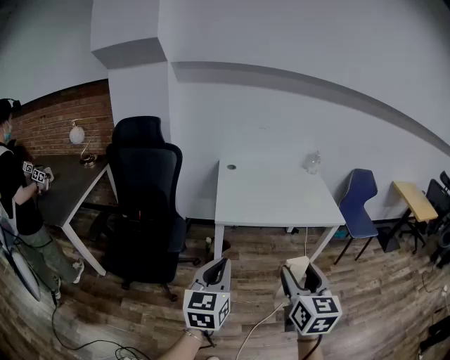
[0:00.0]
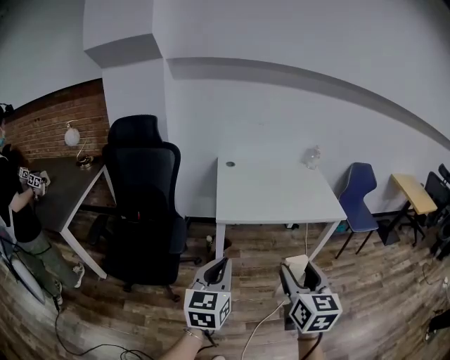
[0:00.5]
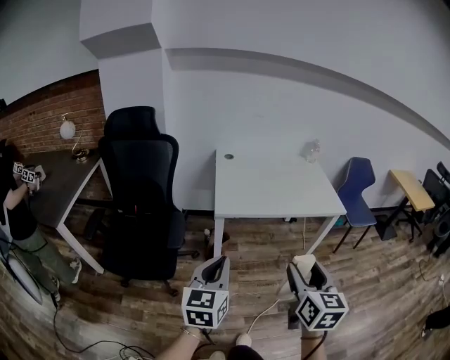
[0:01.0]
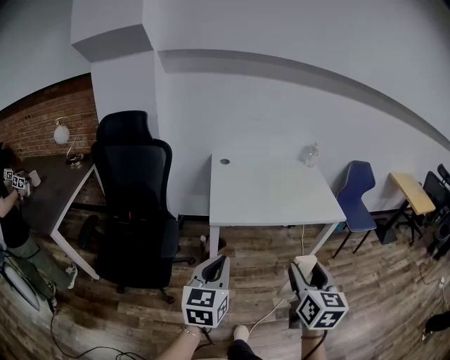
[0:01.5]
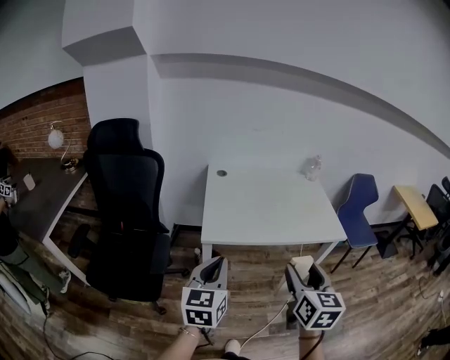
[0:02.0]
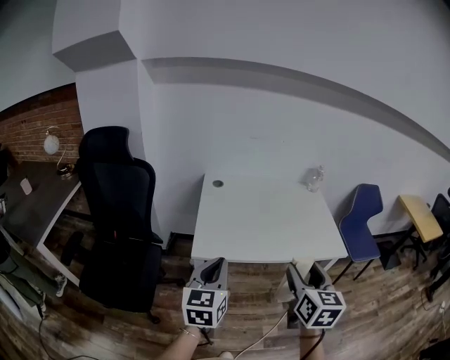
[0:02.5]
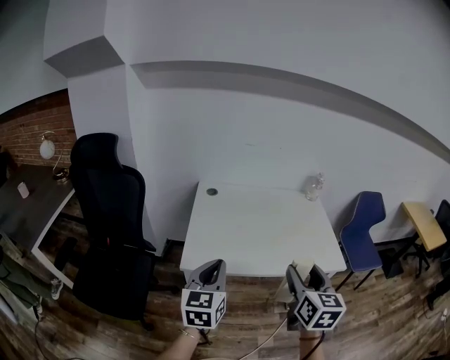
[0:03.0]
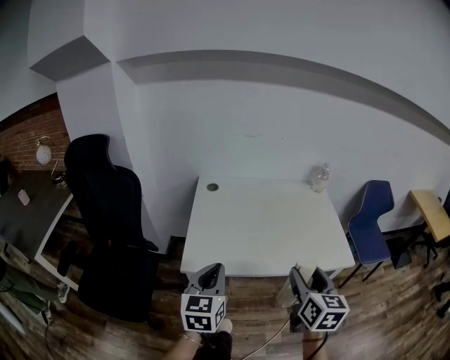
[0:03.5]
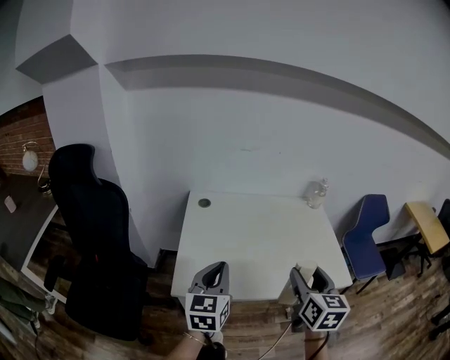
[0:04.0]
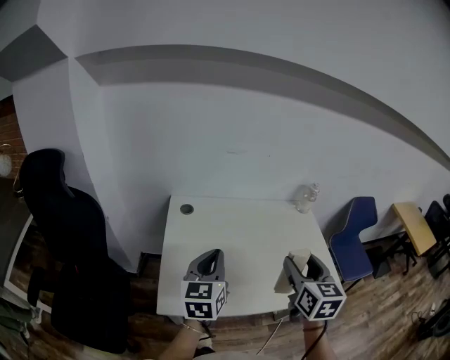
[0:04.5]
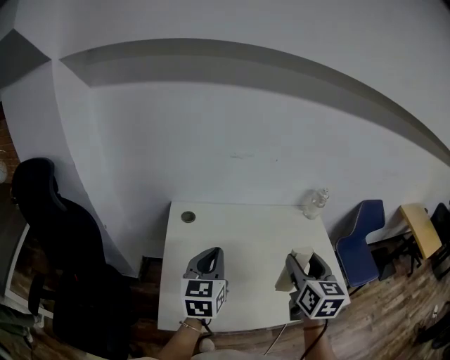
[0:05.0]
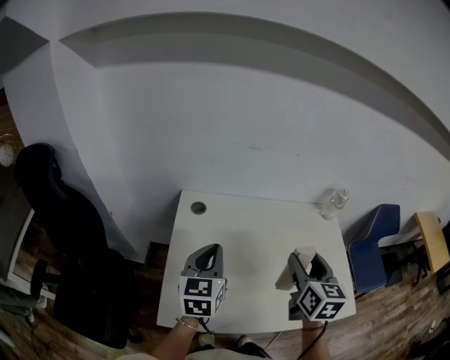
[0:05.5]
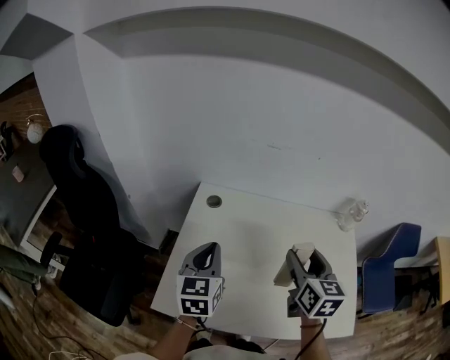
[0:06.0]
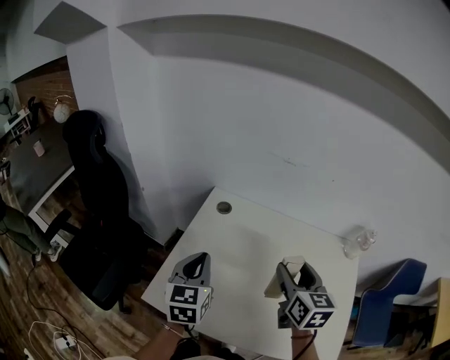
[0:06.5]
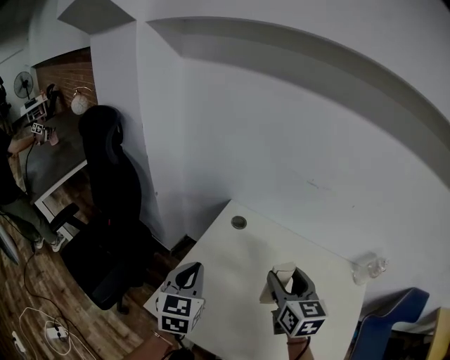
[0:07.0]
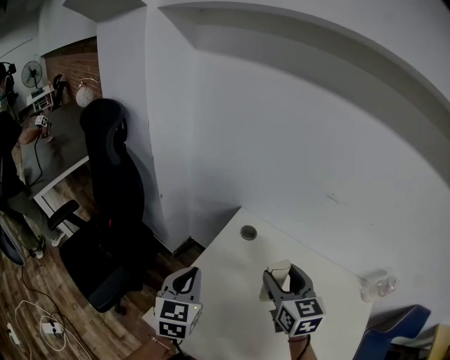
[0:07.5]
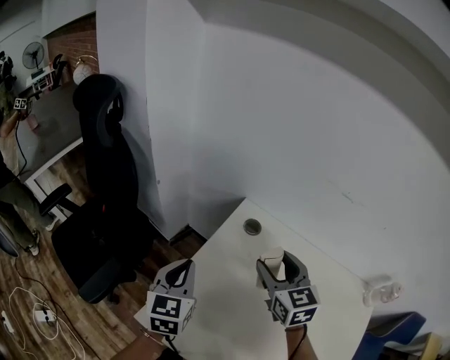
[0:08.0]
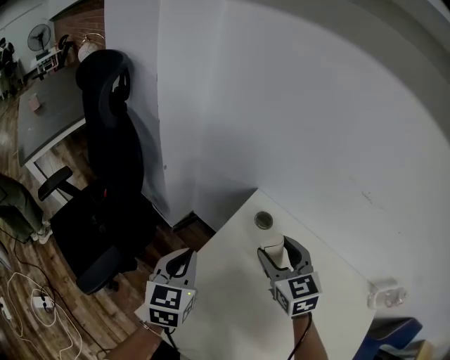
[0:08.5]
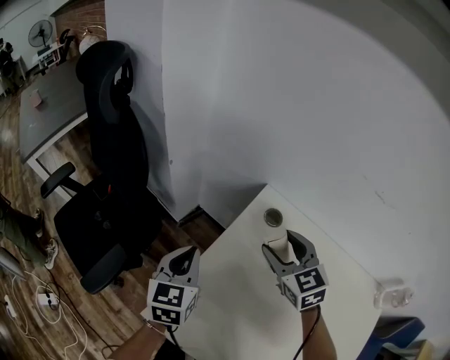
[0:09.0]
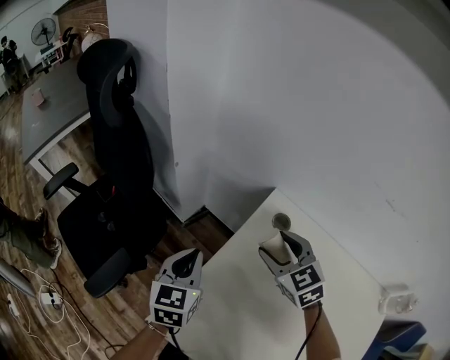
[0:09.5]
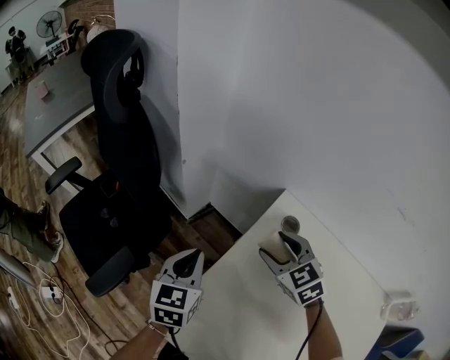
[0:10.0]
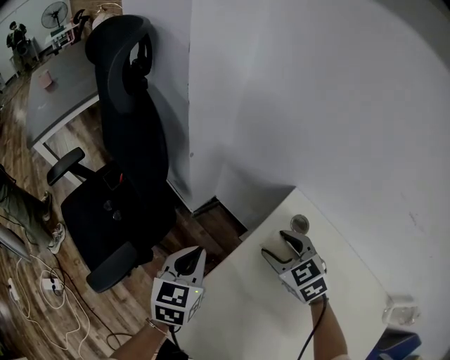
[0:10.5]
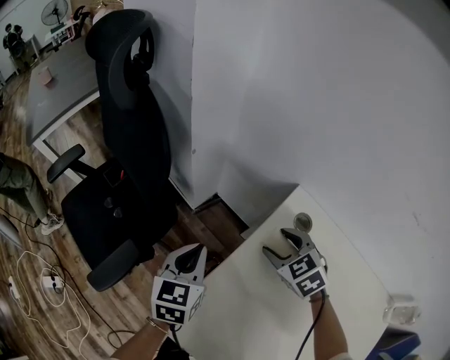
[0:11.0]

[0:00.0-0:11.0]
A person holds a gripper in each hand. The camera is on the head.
0:00.0 to 0:02.0: Both grippers move forward, some 15 cm.
0:02.0 to 0:03.5: The left gripper heads forward, covering some 15 cm. Meanwhile the right gripper is displaced forward and to the right by about 20 cm.
0:03.5 to 0:05.5: Both grippers travel together forward, some 30 cm.
0:05.5 to 0:07.5: The left gripper changes place by some 15 cm, and rotates some 30 degrees, while the right gripper changes place by approximately 20 cm, and swivels some 40 degrees.
0:07.5 to 0:09.0: The right gripper is displaced forward, downward and to the left by roughly 15 cm, and turns by about 20 degrees. Meanwhile the left gripper shifts some 5 cm downward.
0:09.0 to 0:11.0: The right gripper shifts about 10 cm downward and to the left, and changes its angle by approximately 30 degrees; the left gripper ends up roughly 5 cm from where it was.

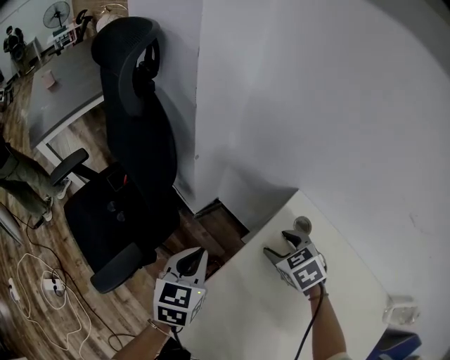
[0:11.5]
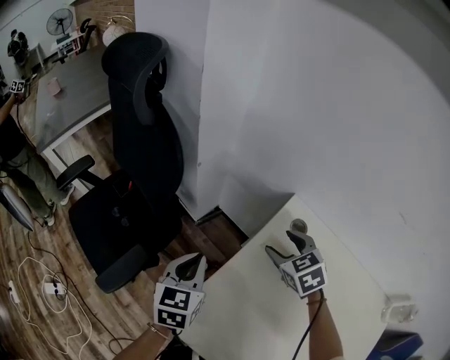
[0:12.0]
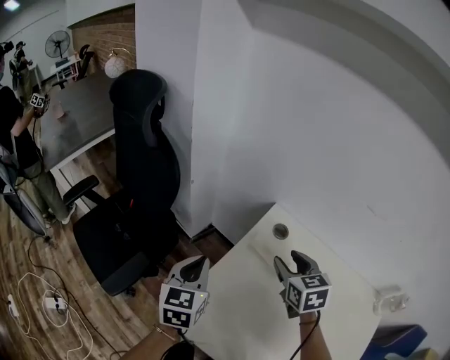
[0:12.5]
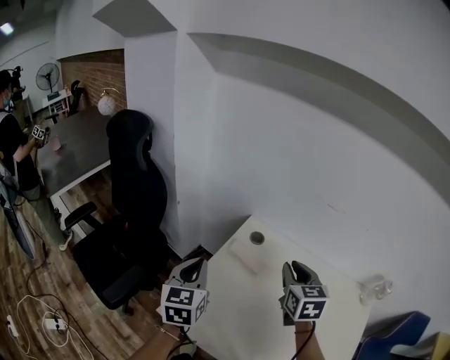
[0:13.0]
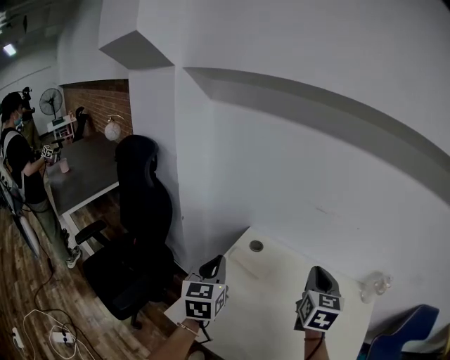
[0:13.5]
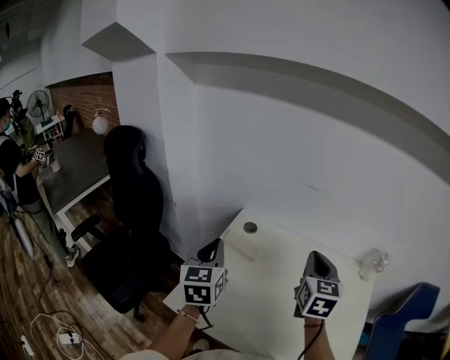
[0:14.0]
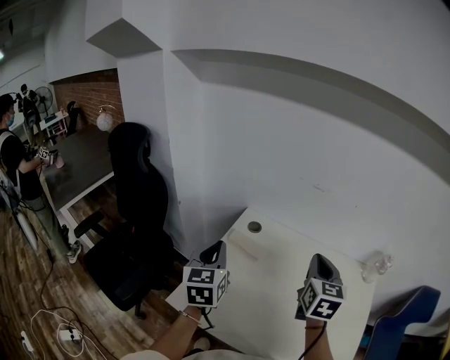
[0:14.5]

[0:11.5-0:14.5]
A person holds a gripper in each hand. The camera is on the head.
0:11.5 to 0:13.0: The right gripper heads upward, backward and to the right, covering approximately 25 cm, tilts its fingers about 30 degrees upward, and closes its fingers. The left gripper goes some 15 cm upward and backward.
0:13.0 to 0:14.5: The left gripper shifts roughly 5 cm to the right. Meanwhile the right gripper shifts roughly 15 cm to the right, backward and upward, and turns by approximately 20 degrees.

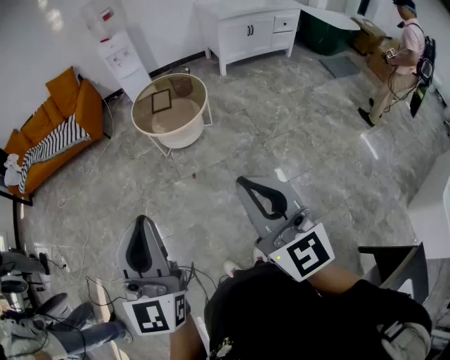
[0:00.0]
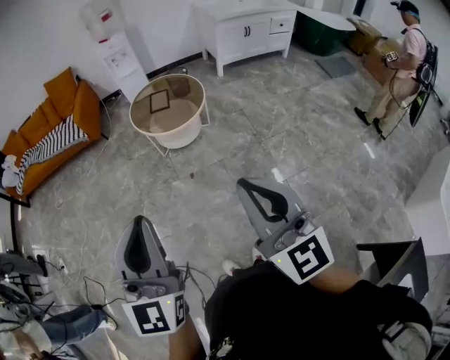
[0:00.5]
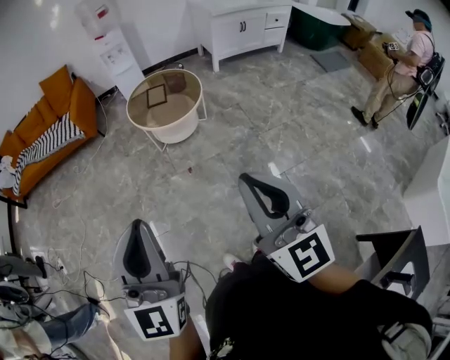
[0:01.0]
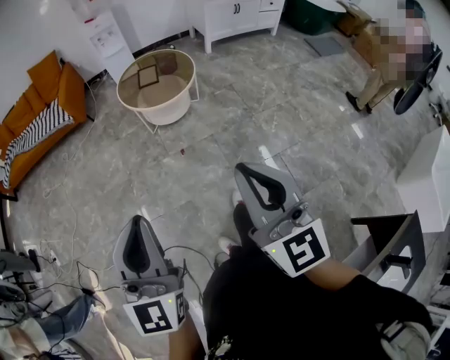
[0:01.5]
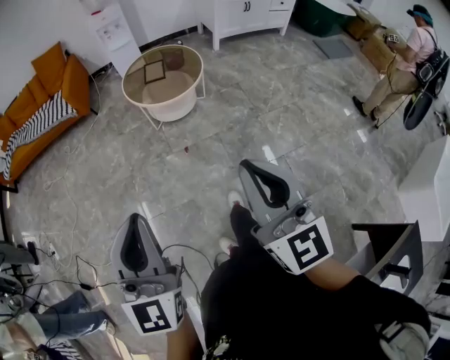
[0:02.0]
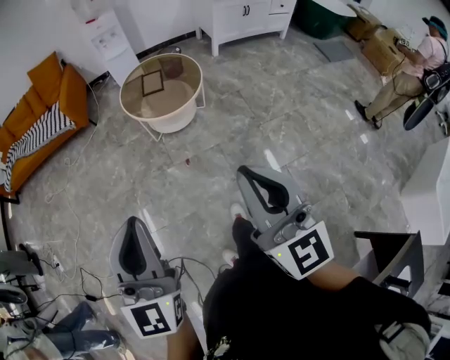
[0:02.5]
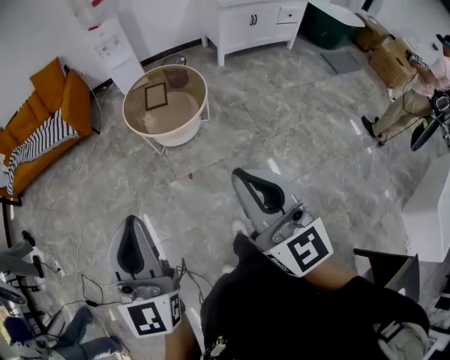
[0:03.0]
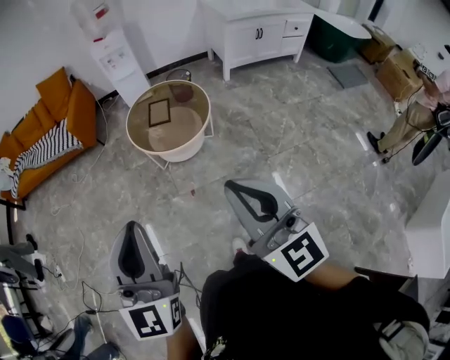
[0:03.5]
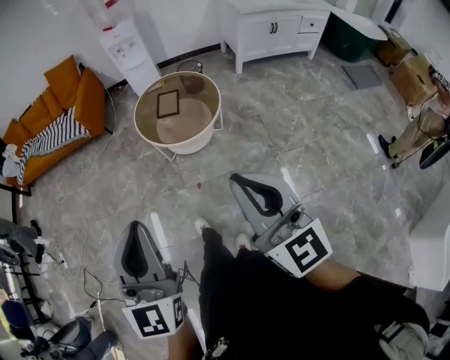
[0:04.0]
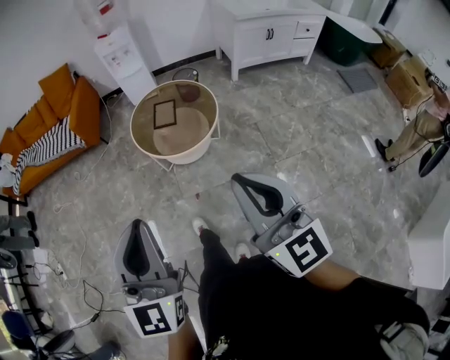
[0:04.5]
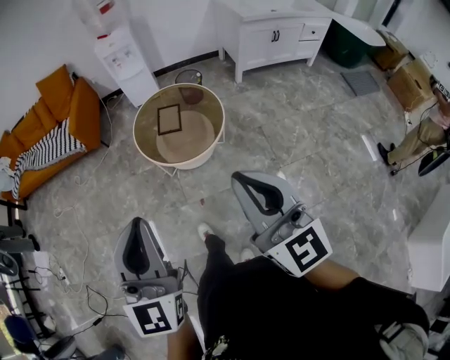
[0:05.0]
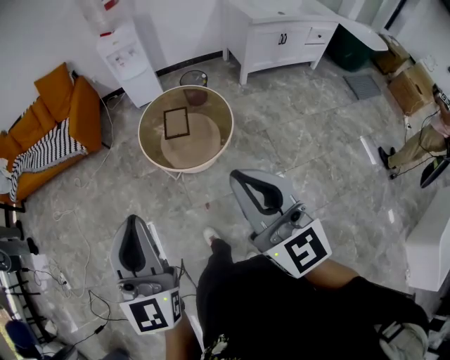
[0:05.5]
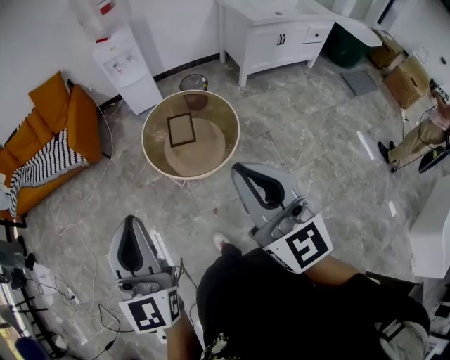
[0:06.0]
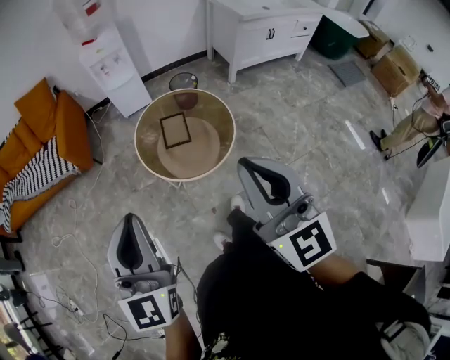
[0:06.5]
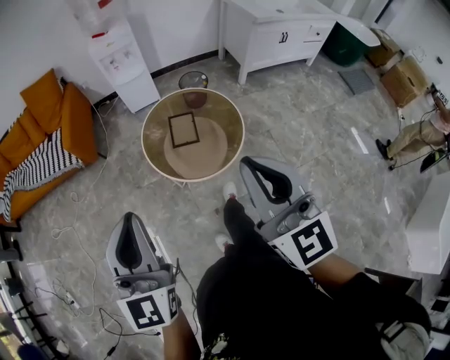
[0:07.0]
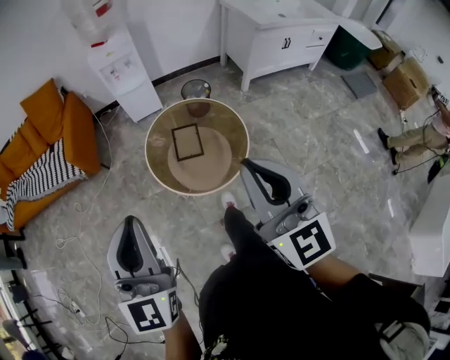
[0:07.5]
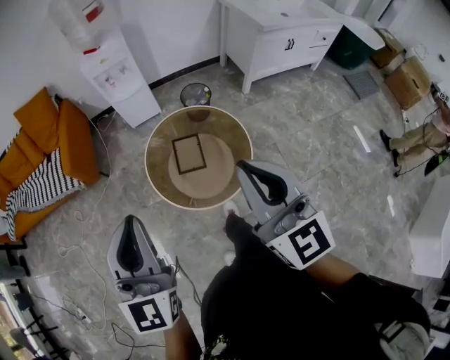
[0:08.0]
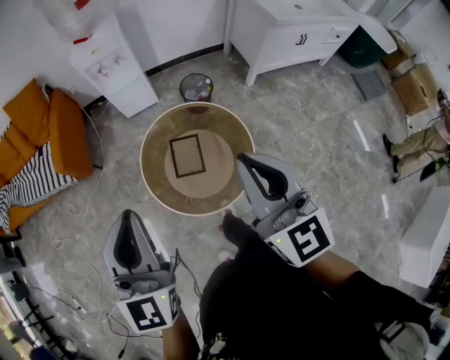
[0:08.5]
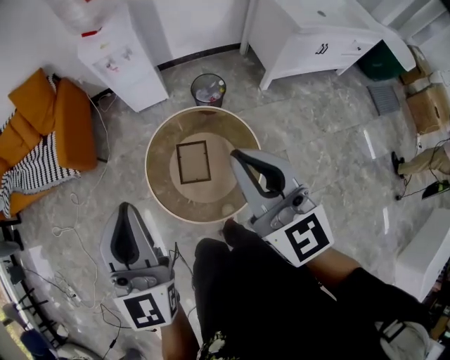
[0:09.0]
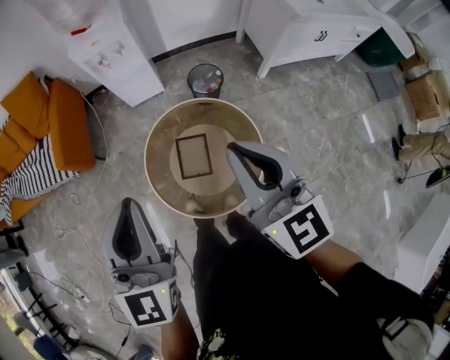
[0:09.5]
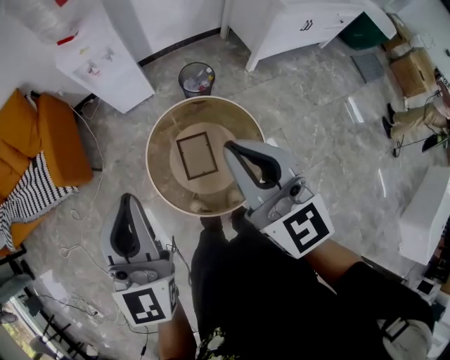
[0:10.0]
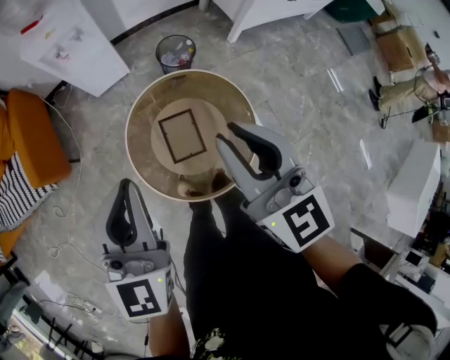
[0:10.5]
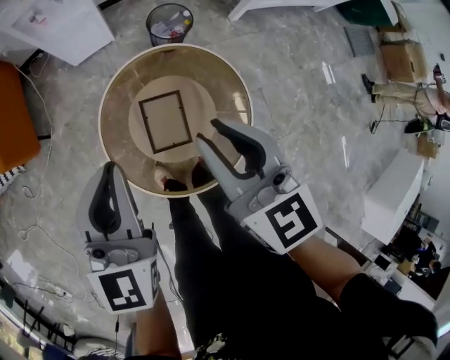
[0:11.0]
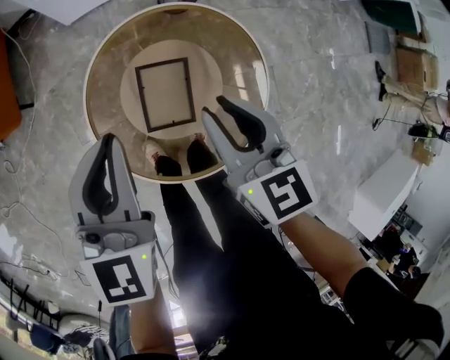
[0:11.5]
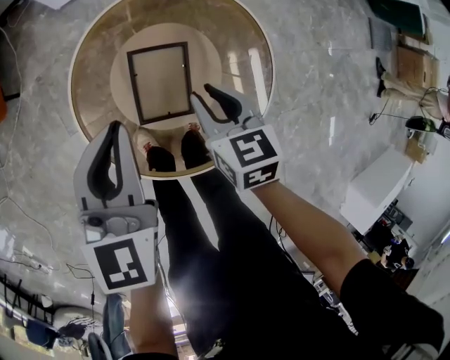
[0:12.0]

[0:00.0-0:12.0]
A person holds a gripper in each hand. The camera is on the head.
0:00.0 to 0:02.0: The left gripper shifts some 10 cm to the left and downward; the right gripper goes approximately 10 cm to the left.
0:02.0 to 0:04.0: Both grippers travel together forward and to the right, approximately 30 cm.
0:04.0 to 0:06.0: Both grippers travel together forward and to the left, about 35 cm.
0:06.0 to 0:08.0: Both grippers travel together forward, about 25 cm.
0:08.0 to 0:10.0: Both grippers travel together forward, about 30 cm.
0:10.0 to 0:12.0: The grippers both shift downward by approximately 50 cm. The left gripper turns by some 30 degrees, while the right gripper points its fingers roughly 40 degrees further downward, and opens.
